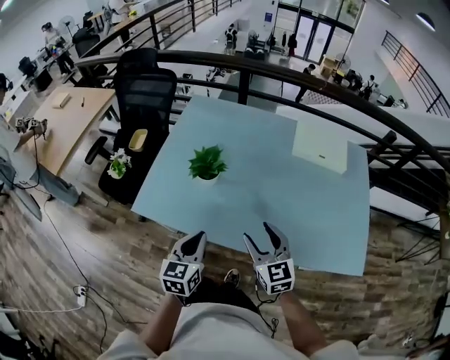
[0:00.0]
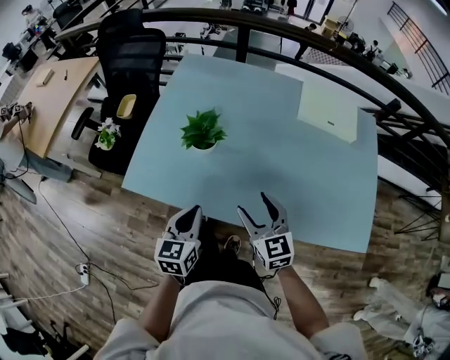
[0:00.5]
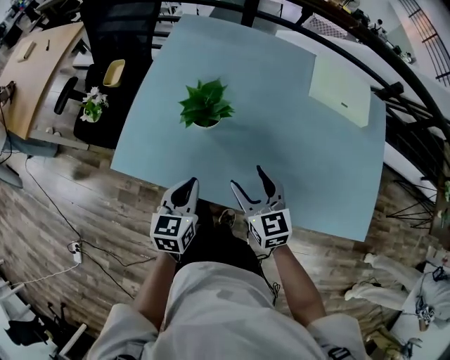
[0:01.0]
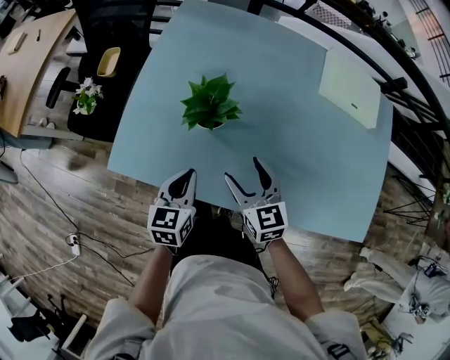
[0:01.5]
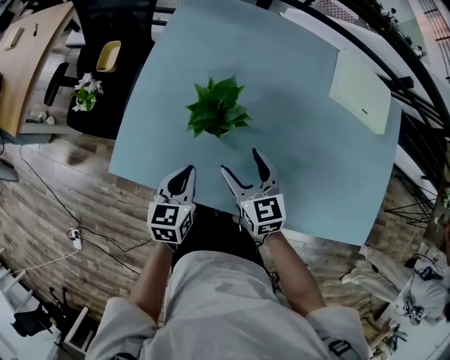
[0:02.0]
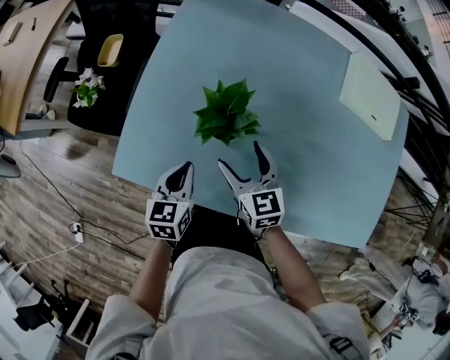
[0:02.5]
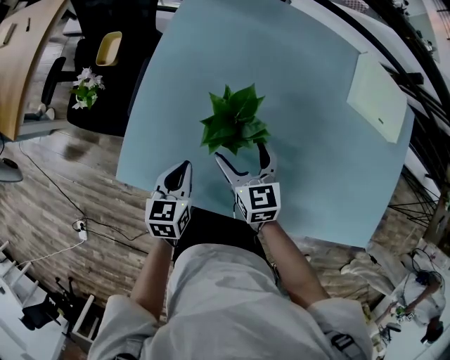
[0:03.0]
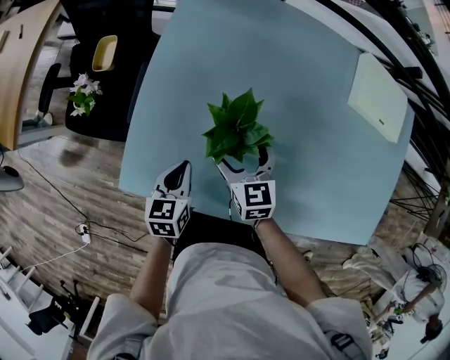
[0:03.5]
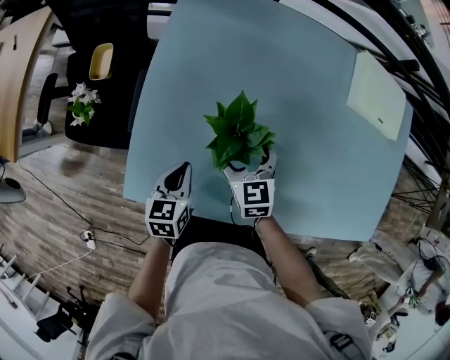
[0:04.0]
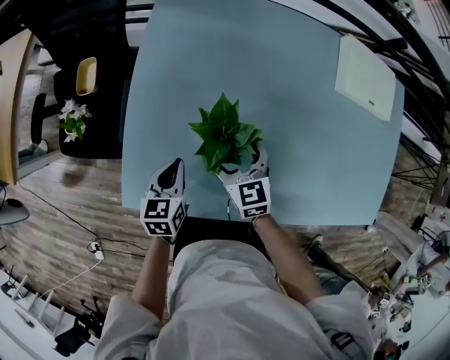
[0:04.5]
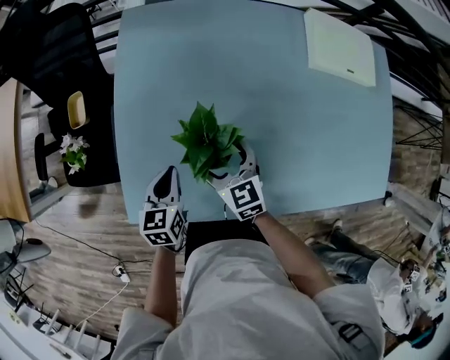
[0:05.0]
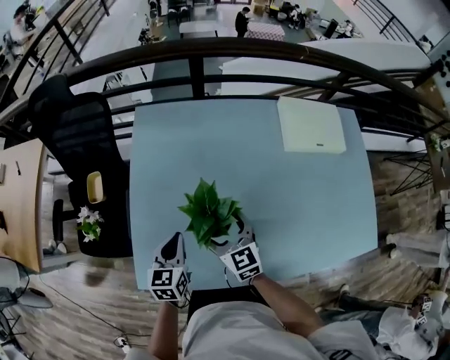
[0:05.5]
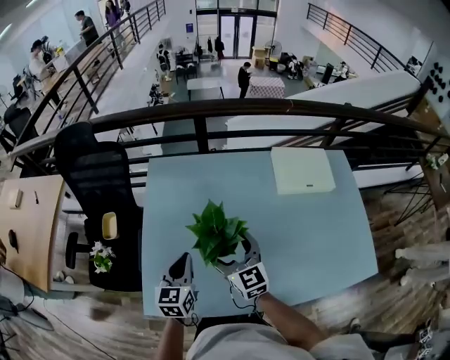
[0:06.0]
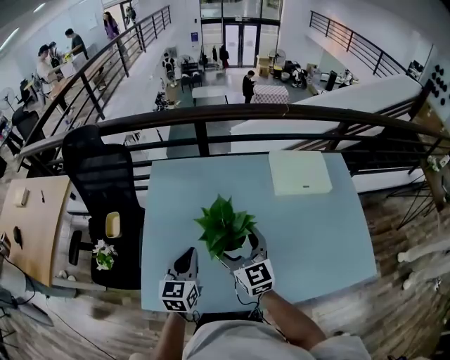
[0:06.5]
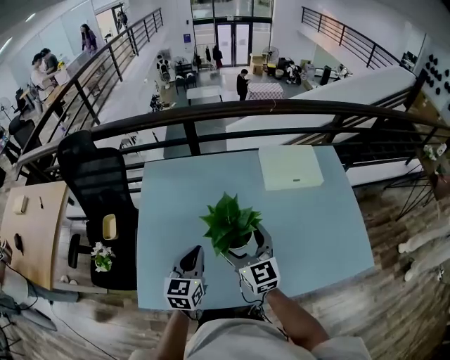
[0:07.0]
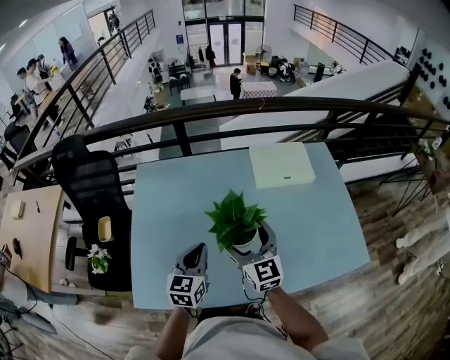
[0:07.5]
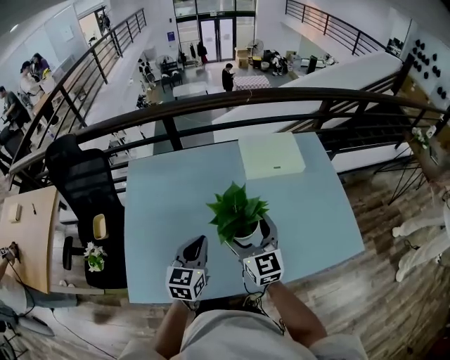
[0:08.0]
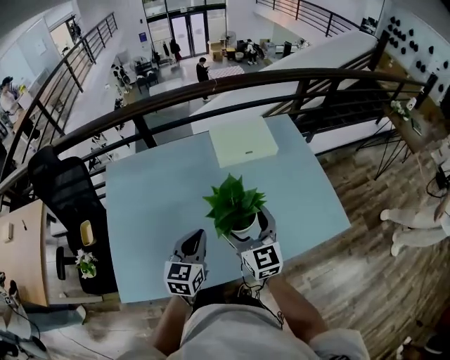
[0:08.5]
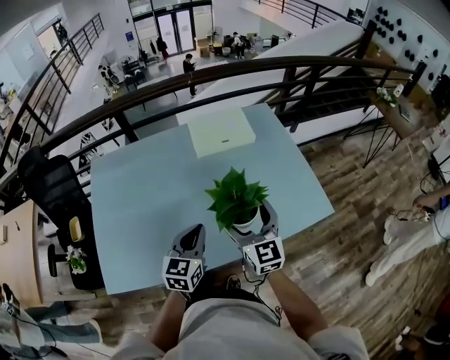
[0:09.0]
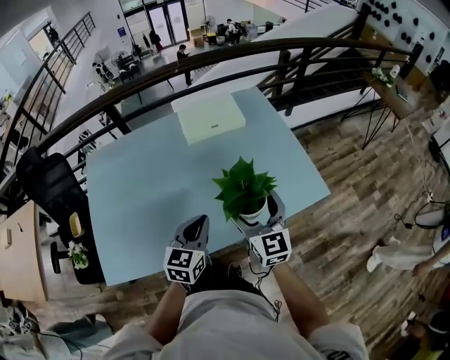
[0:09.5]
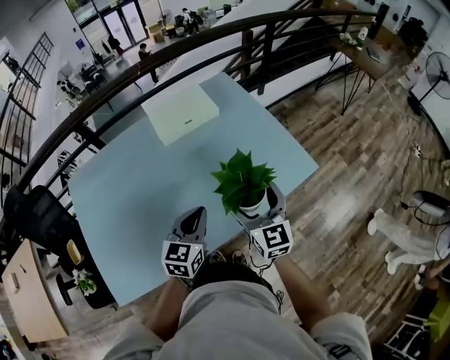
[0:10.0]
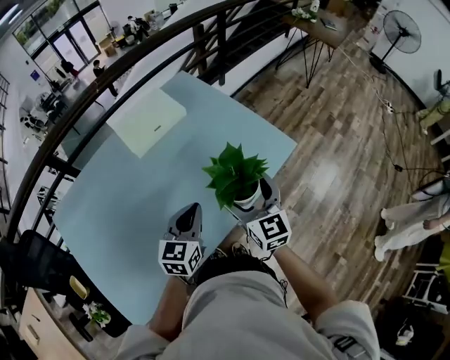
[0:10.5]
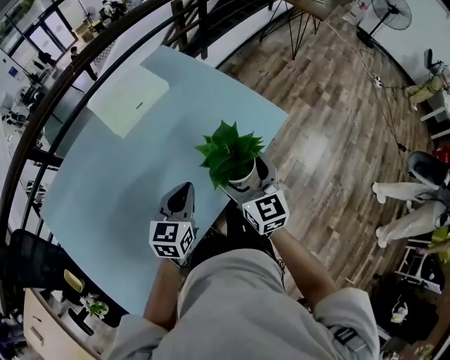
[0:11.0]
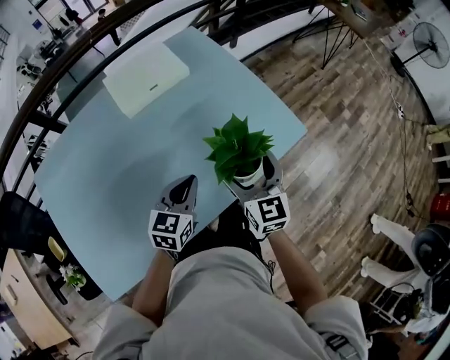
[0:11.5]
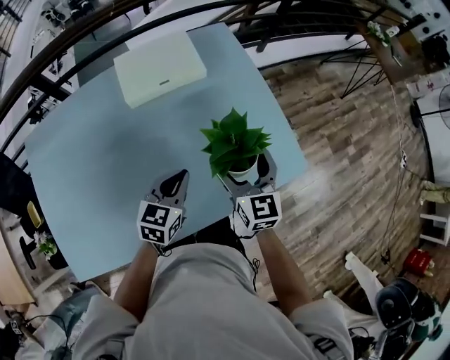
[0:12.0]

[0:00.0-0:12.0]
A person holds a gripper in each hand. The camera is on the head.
0:00.0 to 0:02.0: The left gripper shifts roughly 20 cm downward, forward and to the left, while the right gripper goes some 25 cm forward, downward and to the left.
0:02.0 to 0:04.0: The grippers both shift forward and to the left by approximately 10 cm.
0:04.0 to 0:06.0: Both grippers move upward, approximately 20 cm. The right gripper turns by some 30 degrees, while the left gripper turns by about 30 degrees.
0:06.0 to 0:08.0: The grippers both shift to the right by about 20 cm.
0:08.0 to 0:10.0: The left gripper moves some 25 cm, and changes its angle by approximately 30 degrees. The right gripper shifts by approximately 30 cm, and turns by about 30 degrees.
0:10.0 to 0:12.0: Both grippers move forward and downward, approximately 15 cm.

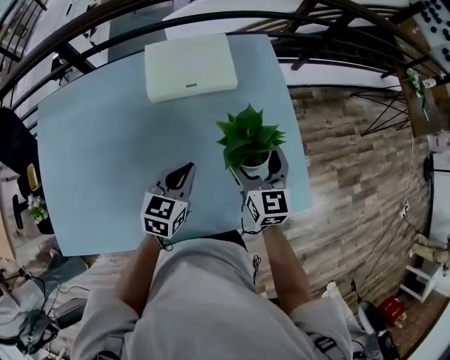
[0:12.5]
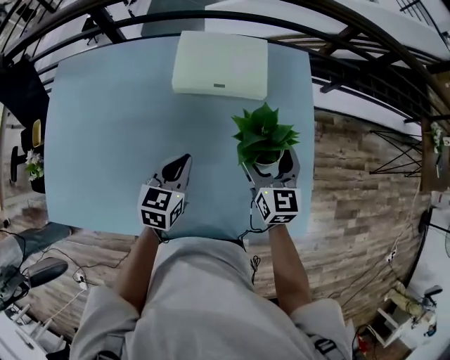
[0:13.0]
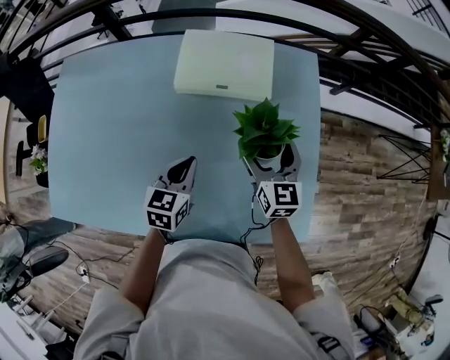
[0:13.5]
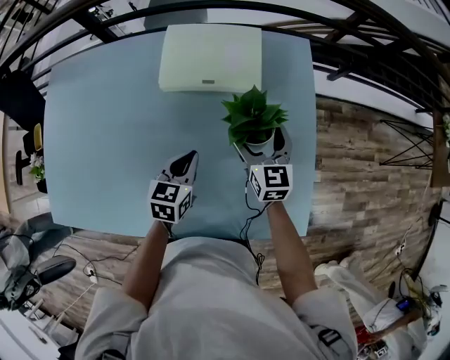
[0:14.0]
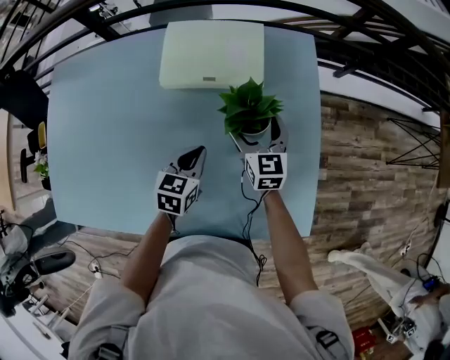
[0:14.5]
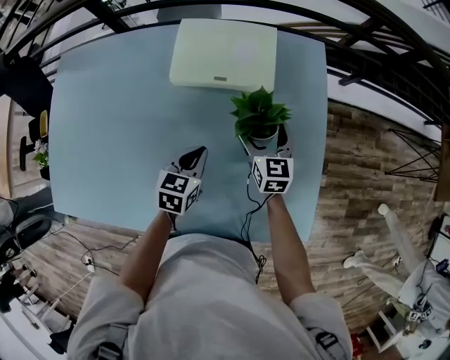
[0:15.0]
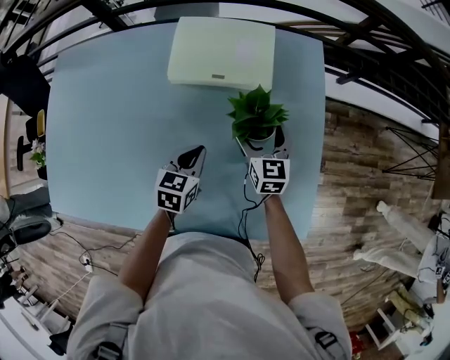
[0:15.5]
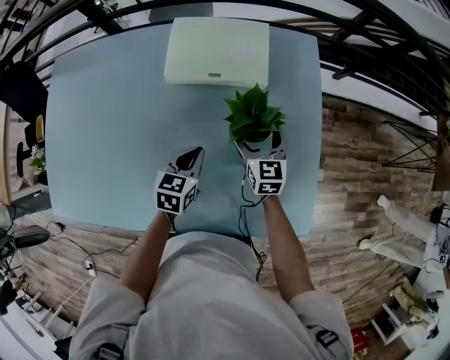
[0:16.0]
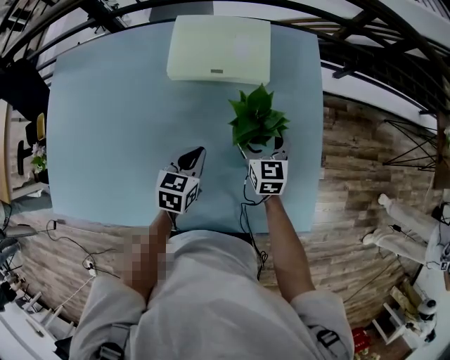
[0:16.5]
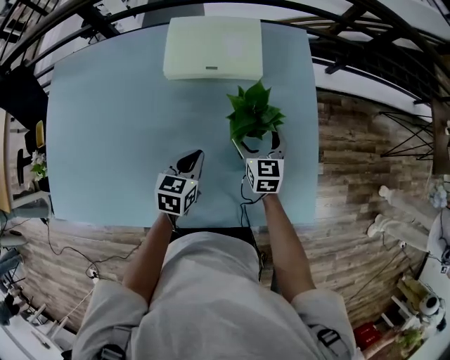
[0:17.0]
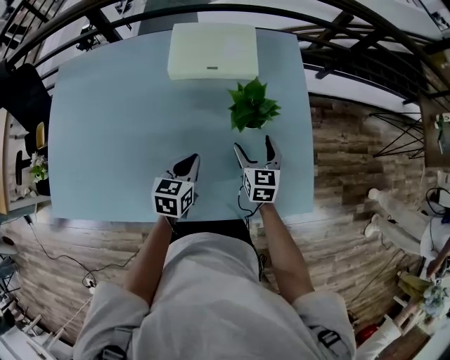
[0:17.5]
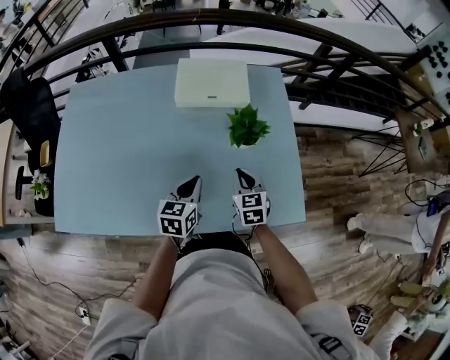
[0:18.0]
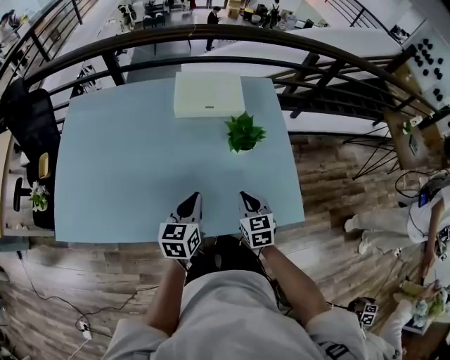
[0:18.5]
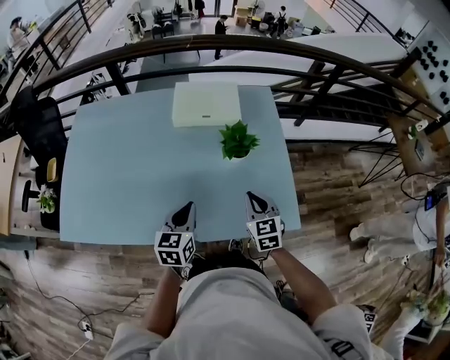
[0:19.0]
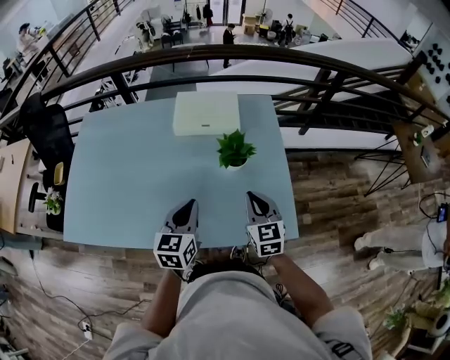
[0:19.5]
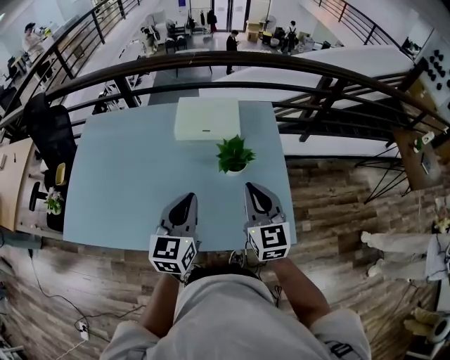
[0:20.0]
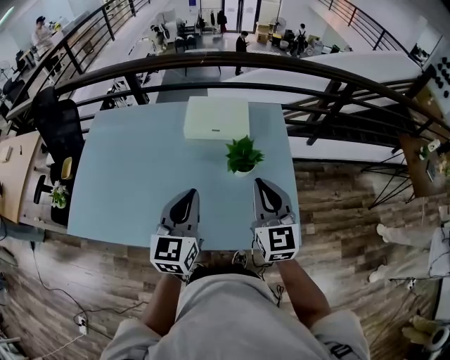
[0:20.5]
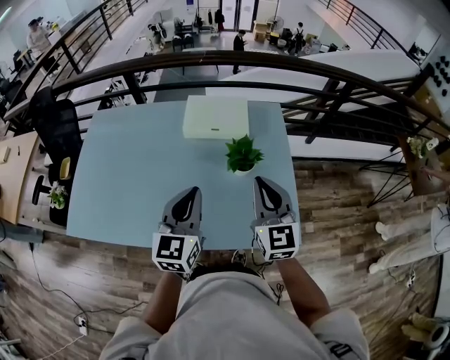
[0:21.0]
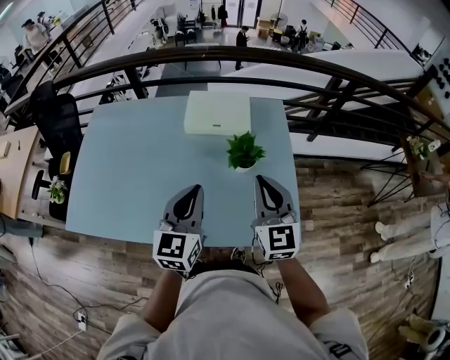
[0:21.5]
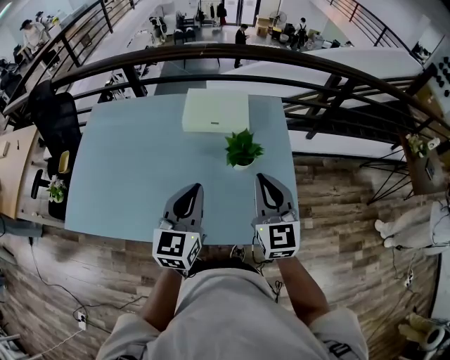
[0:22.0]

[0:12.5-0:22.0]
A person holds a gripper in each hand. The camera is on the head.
0:12.5 to 0:14.5: The left gripper goes approximately 10 cm downward and forward, while the right gripper shifts some 15 cm forward and downward.
0:14.5 to 0:16.5: The right gripper moves roughly 5 cm.
0:16.5 to 0:18.0: The right gripper goes approximately 15 cm backward, and closes; the left gripper heads backward and upward, covering some 15 cm.
0:18.0 to 0:20.0: The two grippers go approximately 20 cm upward. The right gripper turns by roughly 30 degrees. The left gripper swivels some 20 degrees.
0:20.0 to 0:22.0: There are only small adjustments of the grippers.

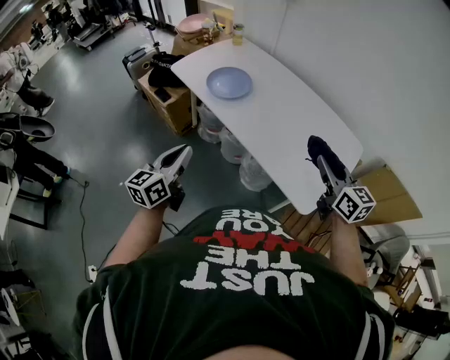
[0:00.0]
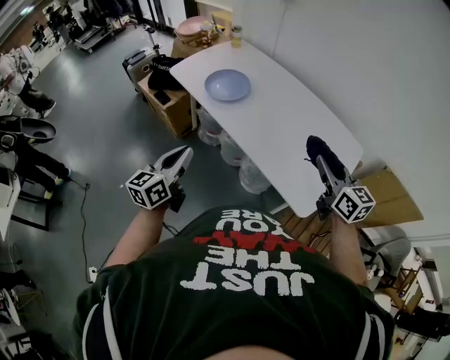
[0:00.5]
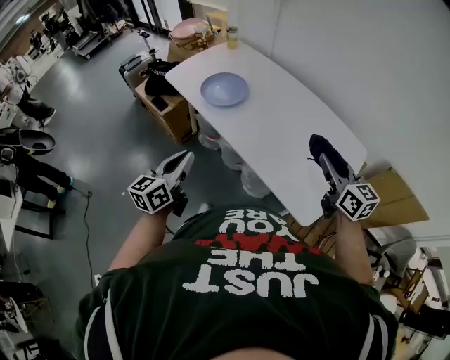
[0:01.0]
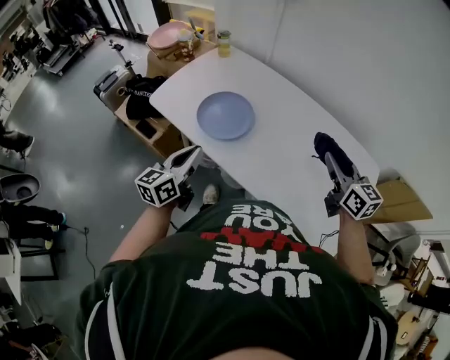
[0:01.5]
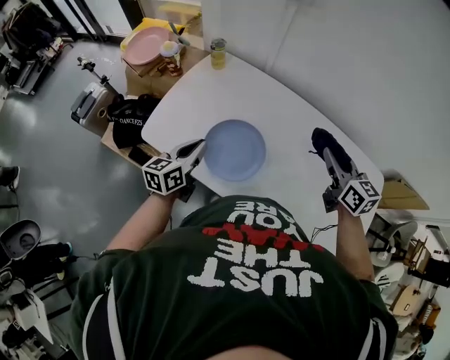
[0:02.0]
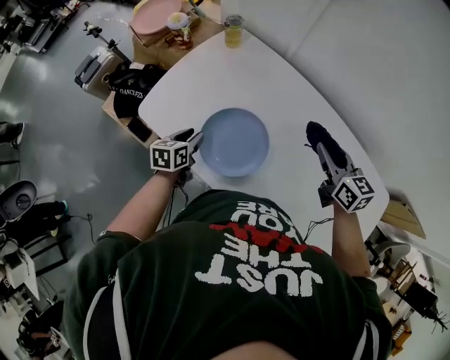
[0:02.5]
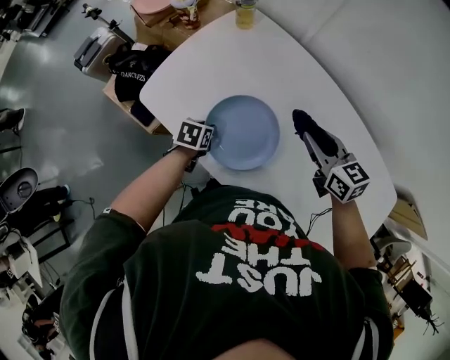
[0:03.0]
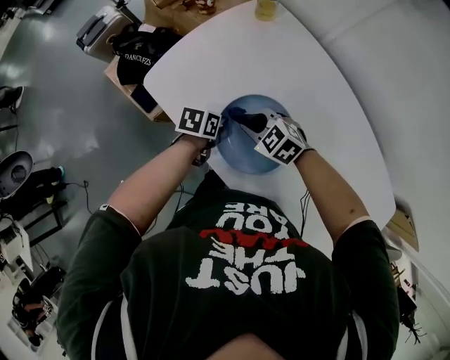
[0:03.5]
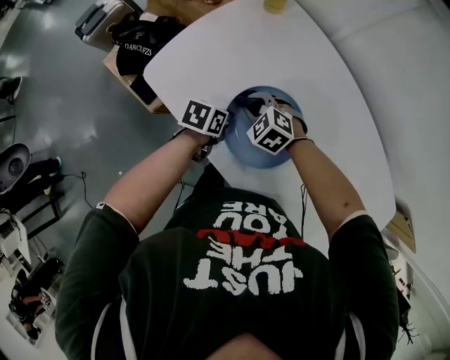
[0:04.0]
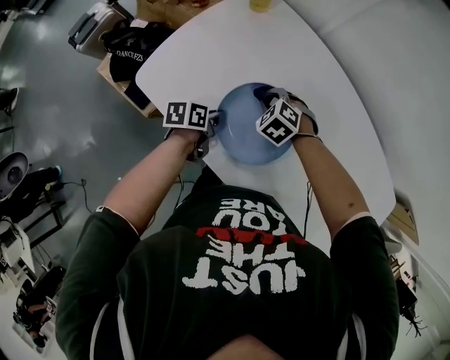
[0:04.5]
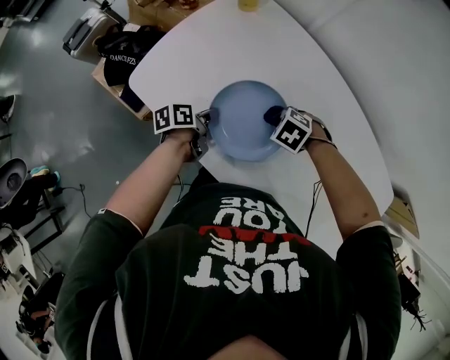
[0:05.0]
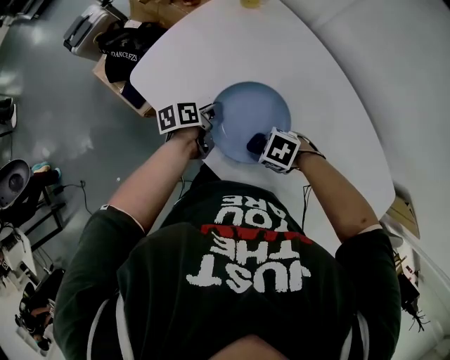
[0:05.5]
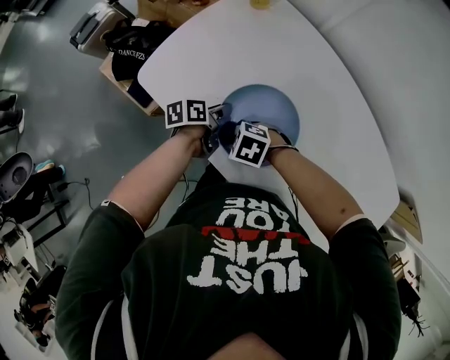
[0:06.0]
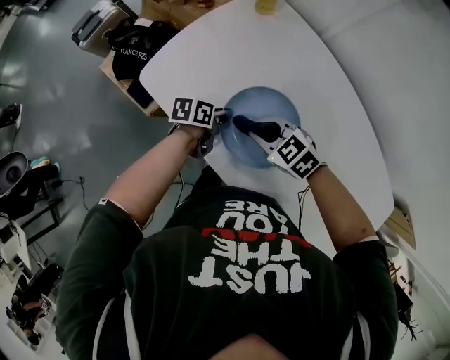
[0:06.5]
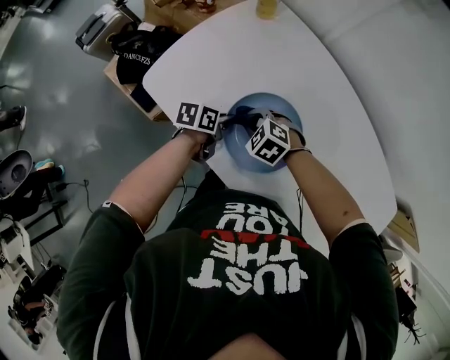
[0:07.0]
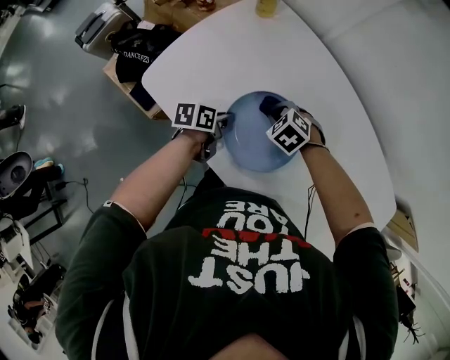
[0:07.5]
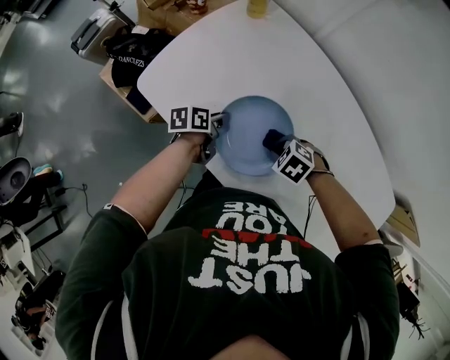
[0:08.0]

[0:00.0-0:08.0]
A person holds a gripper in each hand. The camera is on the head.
0:00.0 to 0:02.0: The two grippers travel together, forward, some 50 cm. The left gripper turns by about 30 degrees.
0:02.0 to 0:04.0: The right gripper ends up about 40 cm from where it was, and tips its fingers downward by about 40 degrees. Meanwhile the left gripper shifts approximately 20 cm downward, tips its fingers downward by roughly 40 degrees, and opens and closes again.
0:04.0 to 0:06.0: The right gripper changes place by some 15 cm, and changes its angle by roughly 30 degrees, while the left gripper swivels some 30 degrees.
0:06.0 to 0:08.0: The right gripper travels upward and back again, roughly 10 cm each way.
